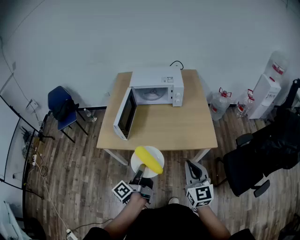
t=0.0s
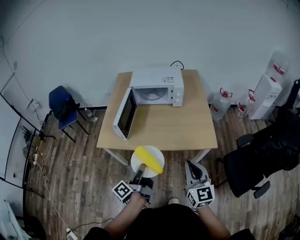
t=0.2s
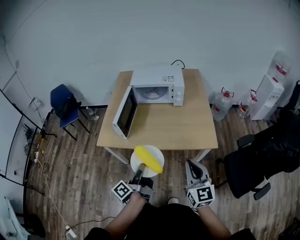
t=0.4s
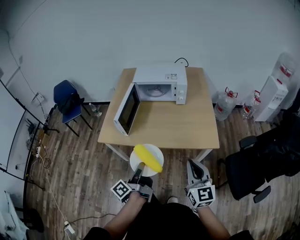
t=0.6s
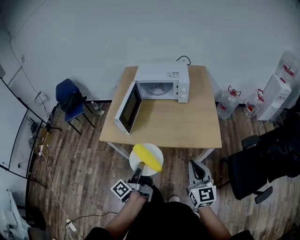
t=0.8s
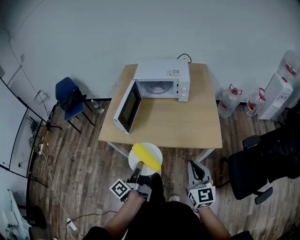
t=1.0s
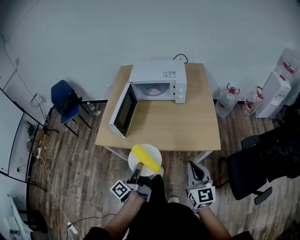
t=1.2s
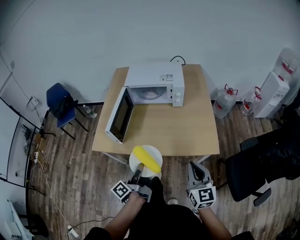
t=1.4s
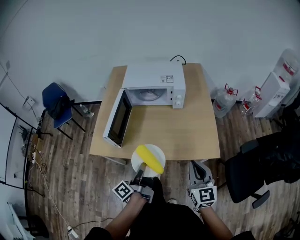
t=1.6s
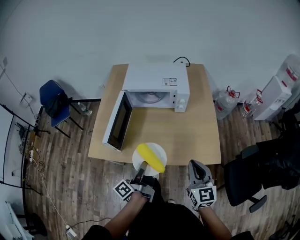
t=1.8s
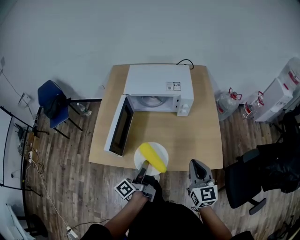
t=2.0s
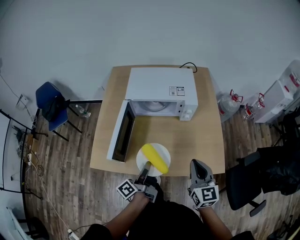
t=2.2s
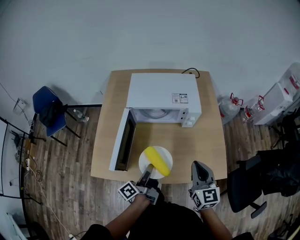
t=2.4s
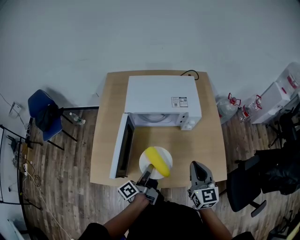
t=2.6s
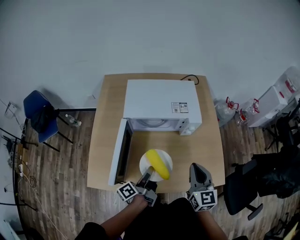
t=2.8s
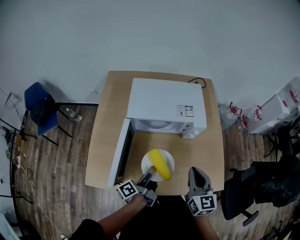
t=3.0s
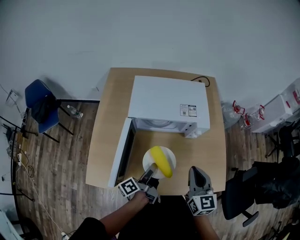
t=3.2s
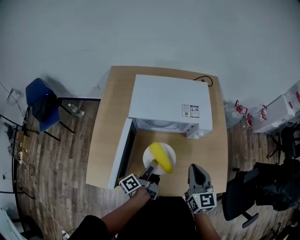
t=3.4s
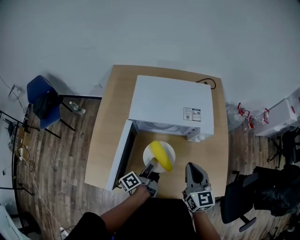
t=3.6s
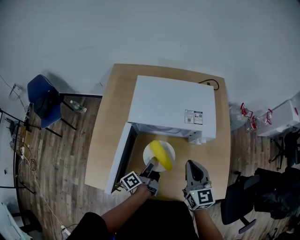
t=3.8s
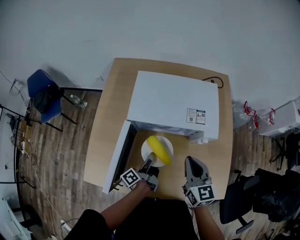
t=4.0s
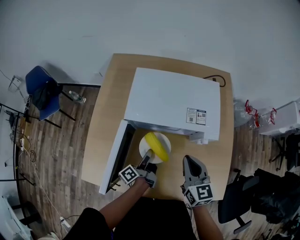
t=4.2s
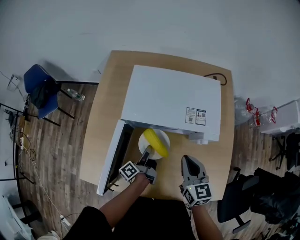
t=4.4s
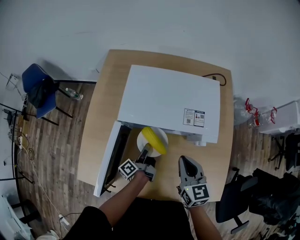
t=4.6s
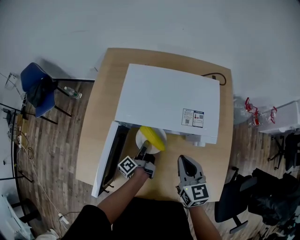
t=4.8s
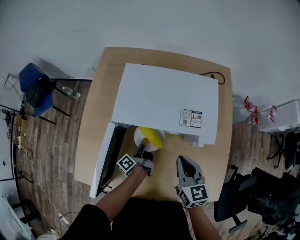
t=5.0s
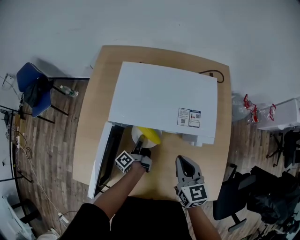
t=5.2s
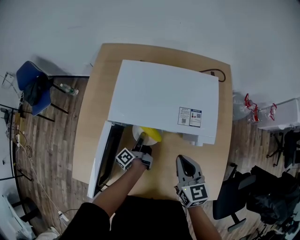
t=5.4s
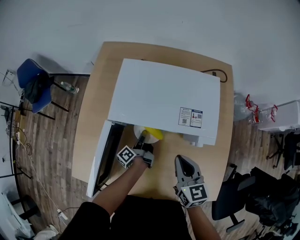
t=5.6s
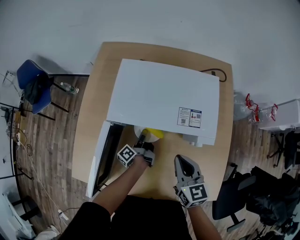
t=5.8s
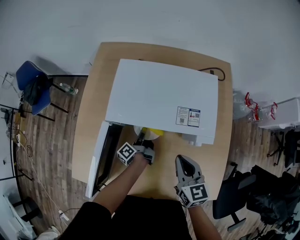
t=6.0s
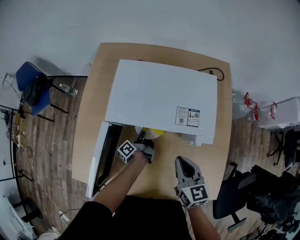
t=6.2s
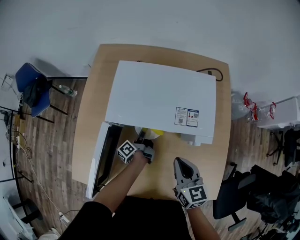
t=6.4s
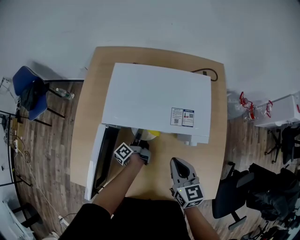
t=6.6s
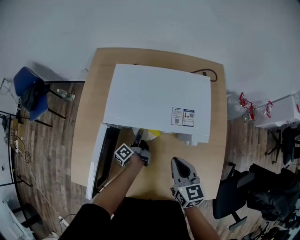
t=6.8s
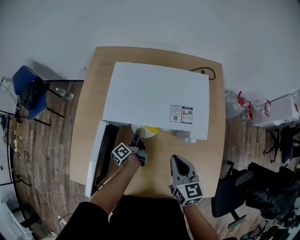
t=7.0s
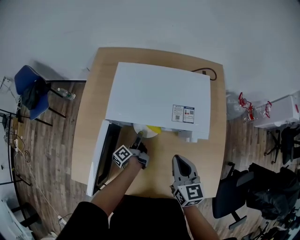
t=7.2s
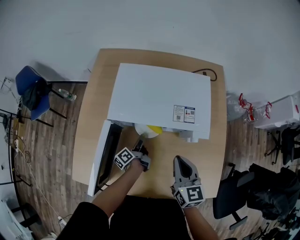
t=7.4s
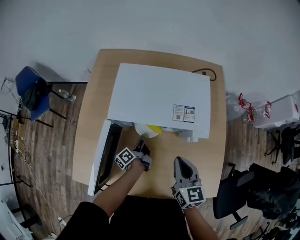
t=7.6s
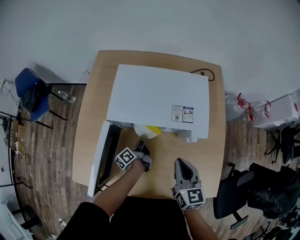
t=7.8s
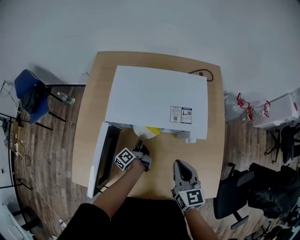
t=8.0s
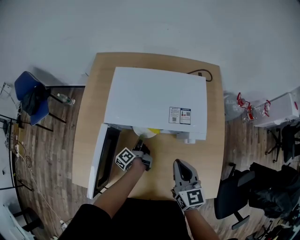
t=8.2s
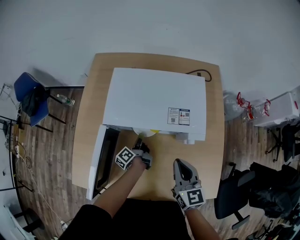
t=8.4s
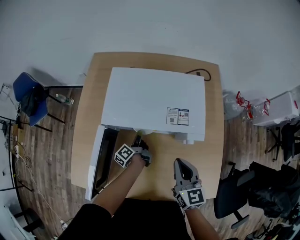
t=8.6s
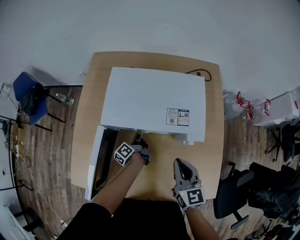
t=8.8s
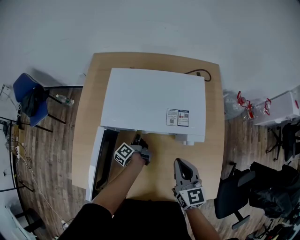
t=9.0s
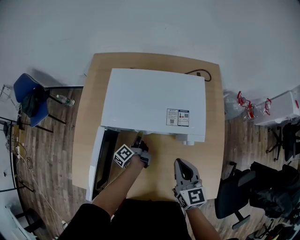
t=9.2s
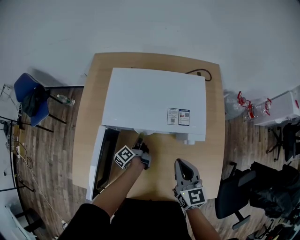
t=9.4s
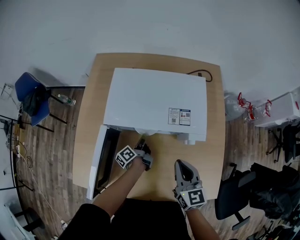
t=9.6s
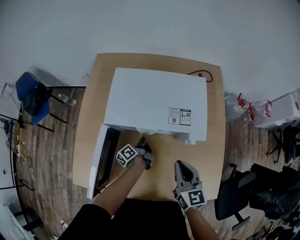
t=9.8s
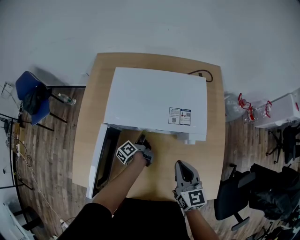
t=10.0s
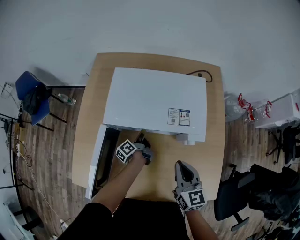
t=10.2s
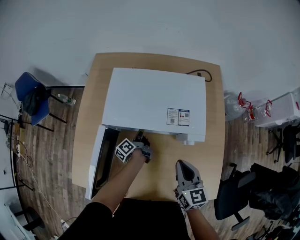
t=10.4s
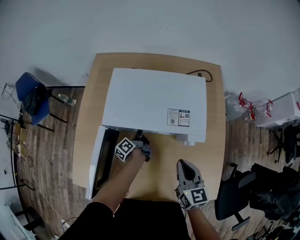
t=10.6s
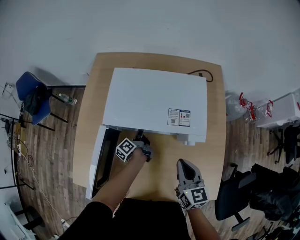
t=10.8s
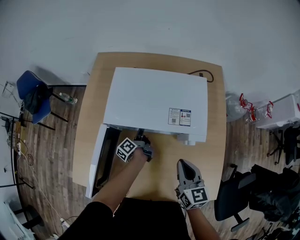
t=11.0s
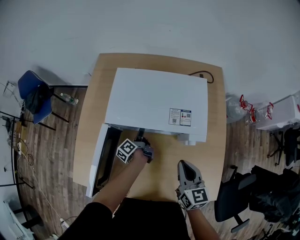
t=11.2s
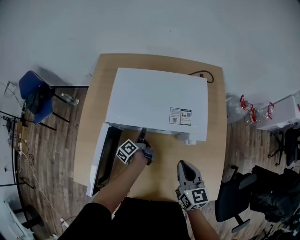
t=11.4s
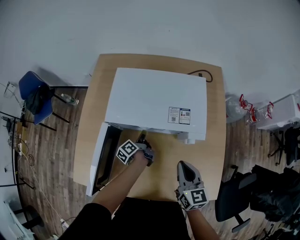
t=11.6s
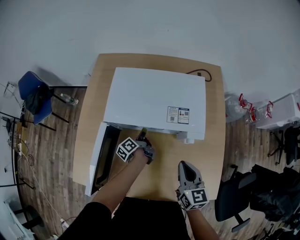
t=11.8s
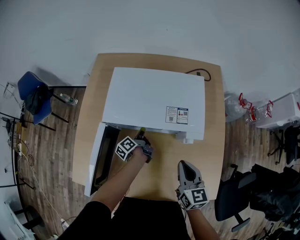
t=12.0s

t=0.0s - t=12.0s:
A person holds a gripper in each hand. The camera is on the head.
t=0.0s - t=1.6s: The right gripper moves about 15 cm.
t=1.6s - t=3.0s: The right gripper changes place by about 25 cm.
t=3.0s - t=4.4s: The right gripper ends up roughly 15 cm from where it was.

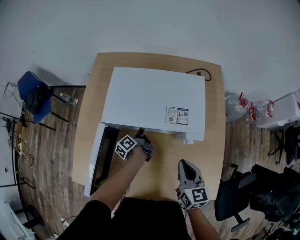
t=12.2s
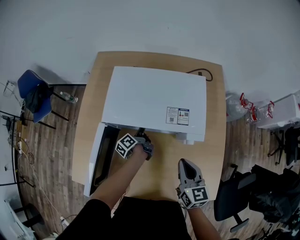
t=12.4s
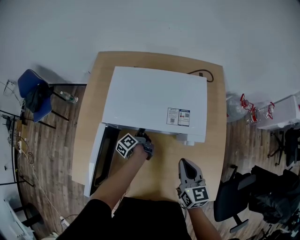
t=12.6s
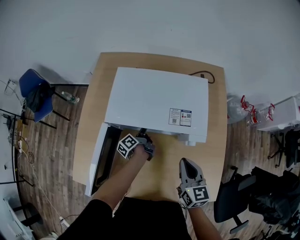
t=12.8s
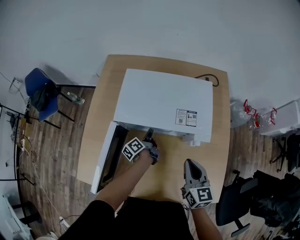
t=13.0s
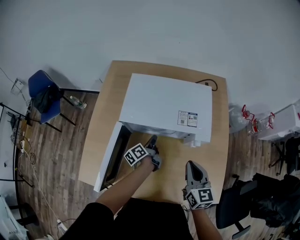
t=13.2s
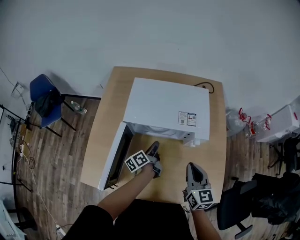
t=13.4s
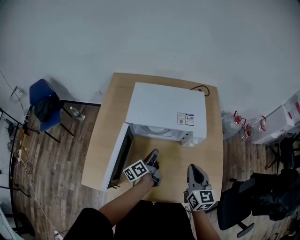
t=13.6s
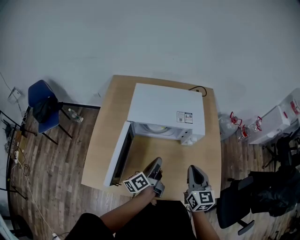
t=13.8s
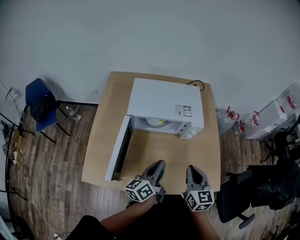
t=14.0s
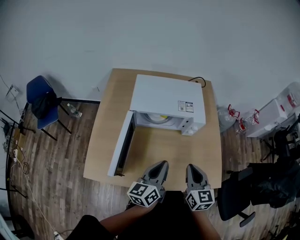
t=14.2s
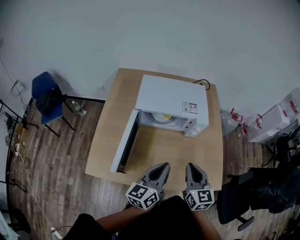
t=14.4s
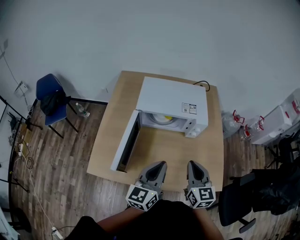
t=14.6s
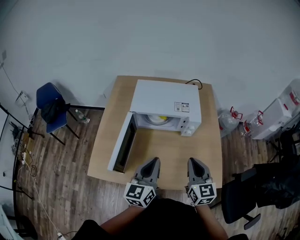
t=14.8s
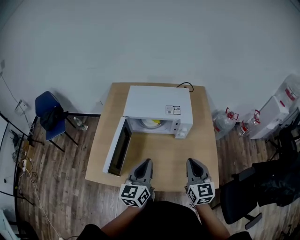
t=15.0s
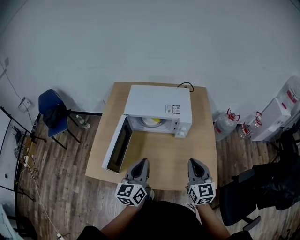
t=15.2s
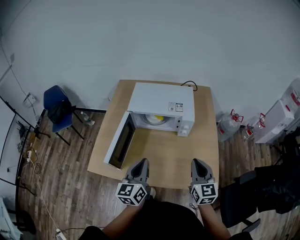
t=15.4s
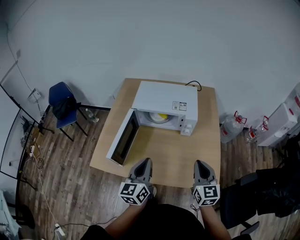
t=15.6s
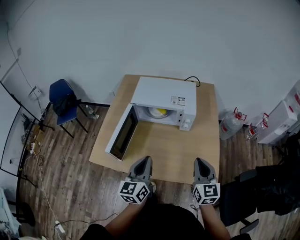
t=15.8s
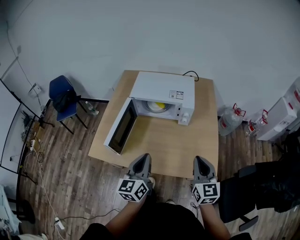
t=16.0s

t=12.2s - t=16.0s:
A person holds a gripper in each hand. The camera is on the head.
t=12.2s - t=13.4s: The right gripper ends up approximately 5 cm from where it was.
t=13.4s - t=14.8s: The right gripper ends up approximately 15 cm from where it was.
t=14.8s - t=16.0s: The right gripper moves roughly 10 cm.

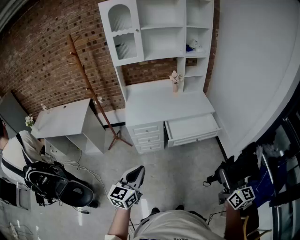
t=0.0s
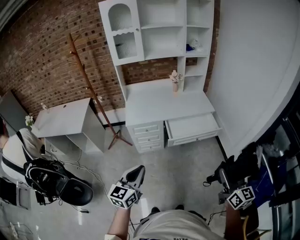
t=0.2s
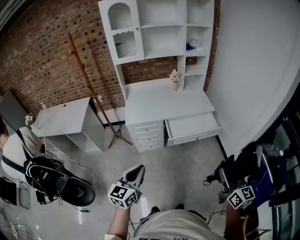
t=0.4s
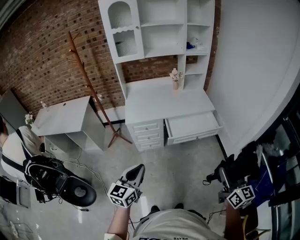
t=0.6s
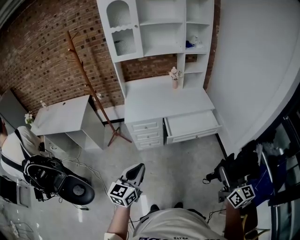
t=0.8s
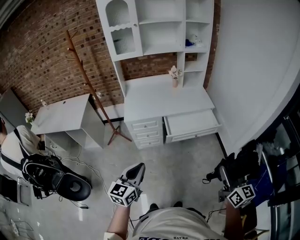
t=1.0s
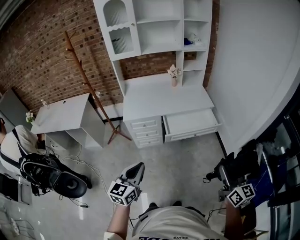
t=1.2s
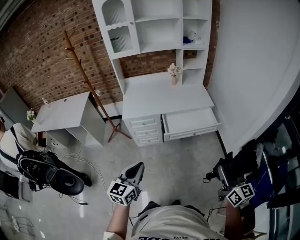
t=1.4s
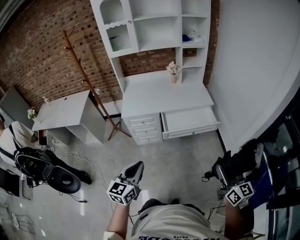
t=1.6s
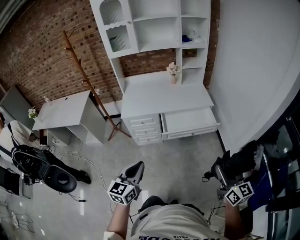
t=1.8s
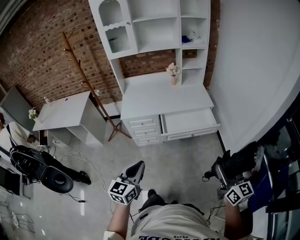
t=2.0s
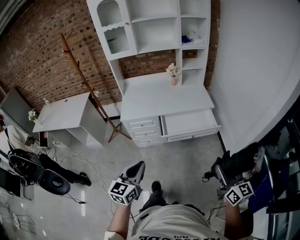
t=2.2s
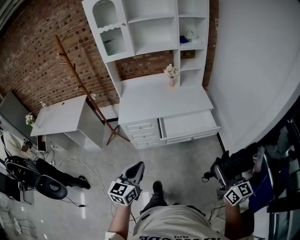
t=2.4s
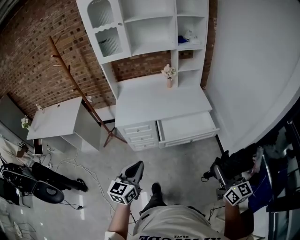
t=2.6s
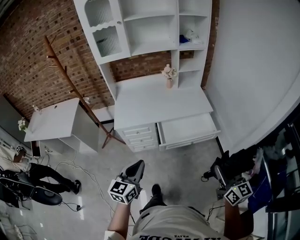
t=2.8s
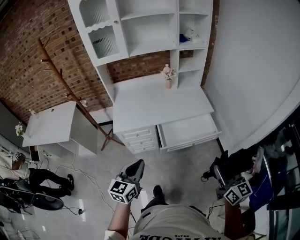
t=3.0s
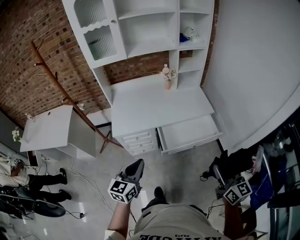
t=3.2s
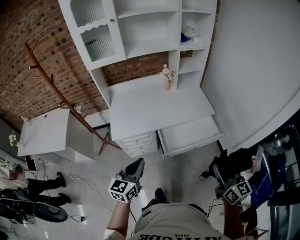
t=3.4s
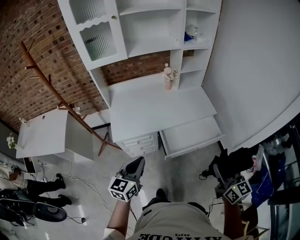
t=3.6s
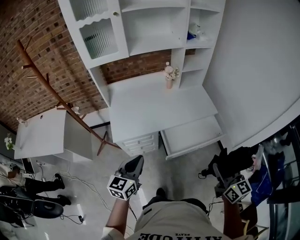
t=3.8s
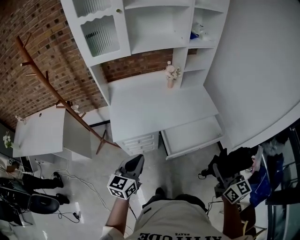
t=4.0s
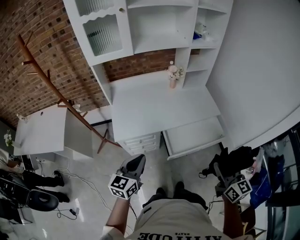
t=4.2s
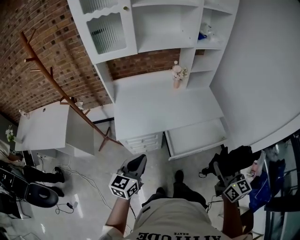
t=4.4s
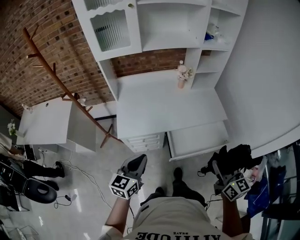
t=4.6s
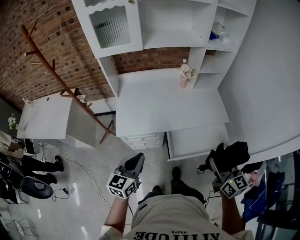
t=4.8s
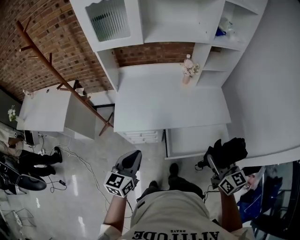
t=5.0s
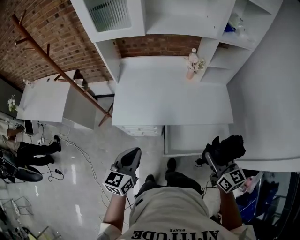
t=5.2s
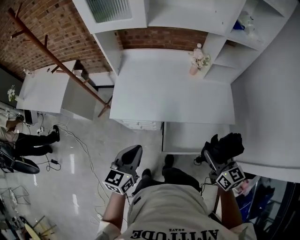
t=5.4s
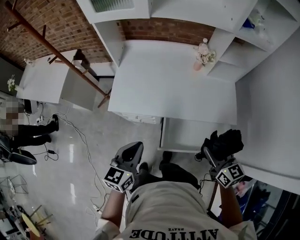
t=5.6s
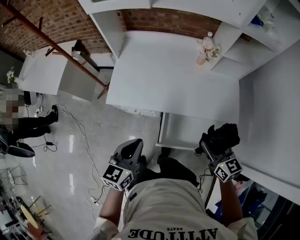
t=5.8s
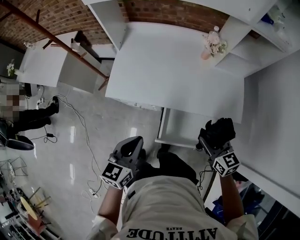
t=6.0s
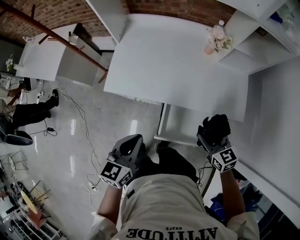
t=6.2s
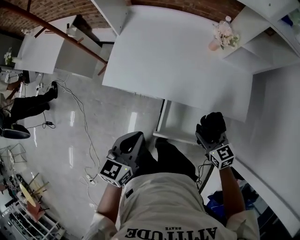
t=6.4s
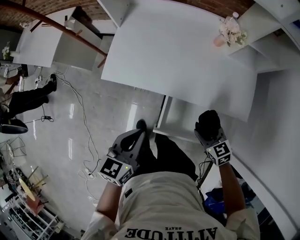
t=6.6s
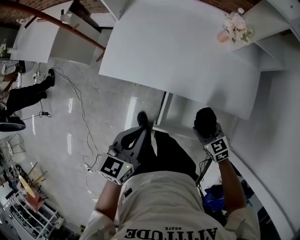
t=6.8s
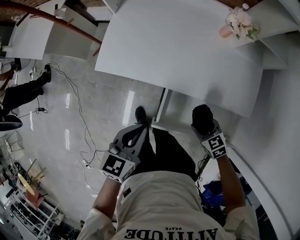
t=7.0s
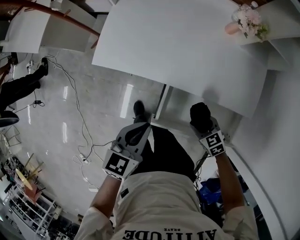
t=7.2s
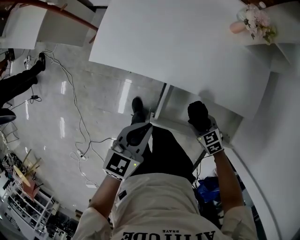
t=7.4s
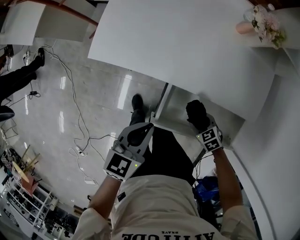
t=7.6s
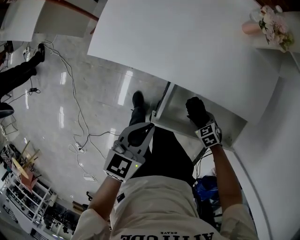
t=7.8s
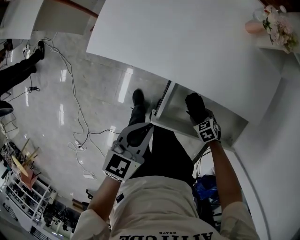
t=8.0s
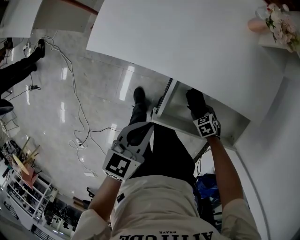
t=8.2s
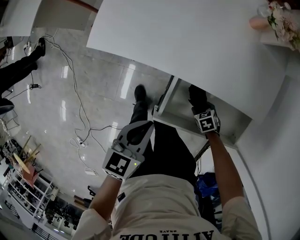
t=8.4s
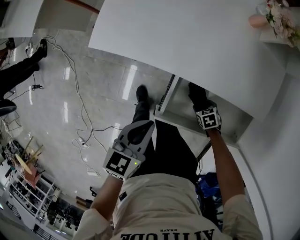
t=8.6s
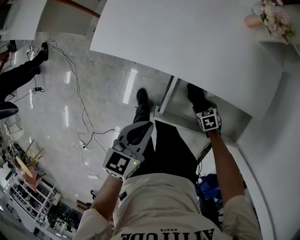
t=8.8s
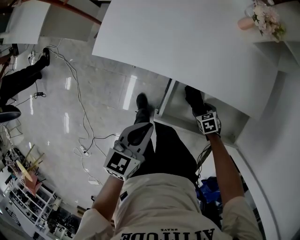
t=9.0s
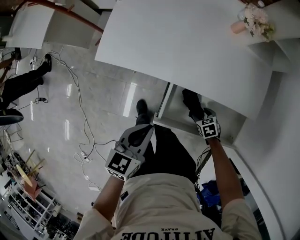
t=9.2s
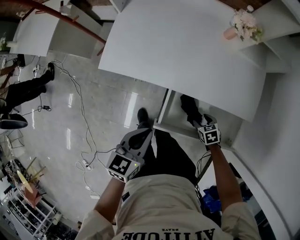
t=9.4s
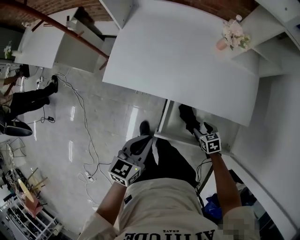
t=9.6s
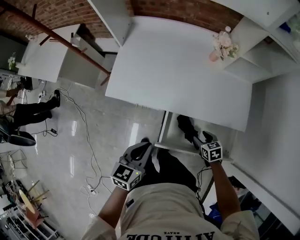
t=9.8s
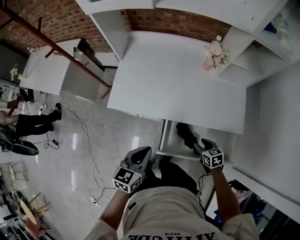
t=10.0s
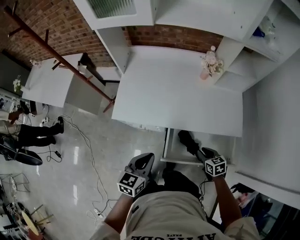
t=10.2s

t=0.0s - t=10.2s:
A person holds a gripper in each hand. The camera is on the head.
t=0.0s - t=1.4s: The two grippers go roughly 5 cm to the right.
t=1.4s - t=3.0s: The grippers both shift forward by roughly 20 cm.
t=3.0s - t=4.4s: The grippers both shift forward and to the left by about 20 cm.
t=4.4s - t=5.8s: The left gripper changes place by roughly 15 cm, and swivels about 20 degrees, while the right gripper changes place by roughly 25 cm, and changes its angle by about 40 degrees.
t=5.8s - t=7.2s: The right gripper is displaced downward by some 30 cm, and tips its fingers downward by some 30 degrees; the left gripper heads downward and to the right, covering approximately 15 cm.
t=7.2s - t=8.8s: The left gripper is displaced downward by roughly 5 cm. Meanwhile the right gripper is displaced downward by approximately 15 cm, and rotates roughly 20 degrees.
t=8.8s - t=10.2s: The right gripper is displaced upward by approximately 25 cm, turns by about 30 degrees, and closes; the left gripper moves upward, about 15 cm.
